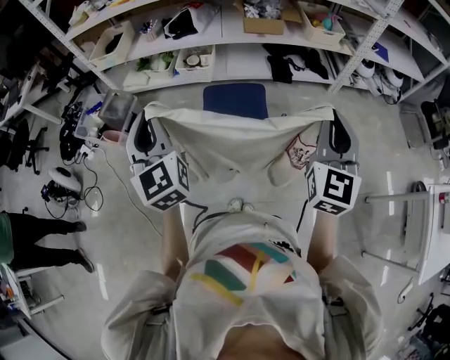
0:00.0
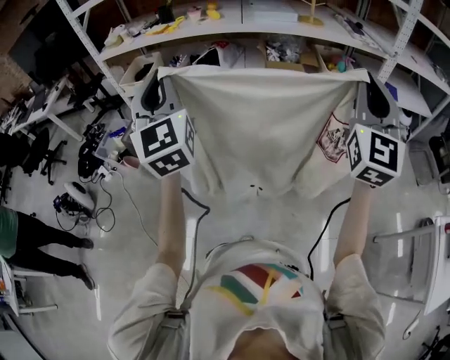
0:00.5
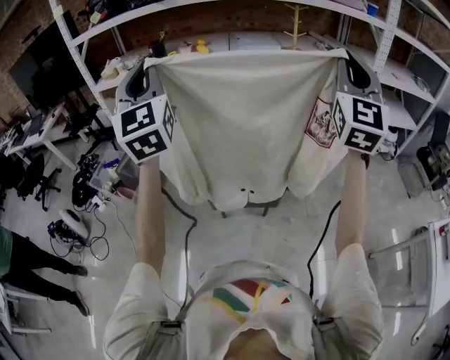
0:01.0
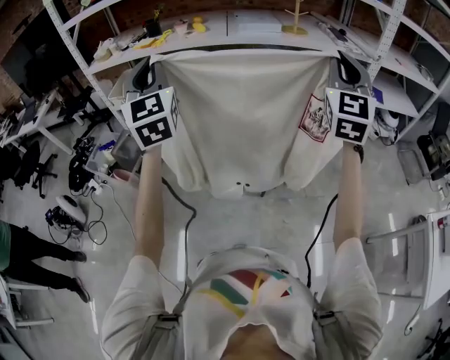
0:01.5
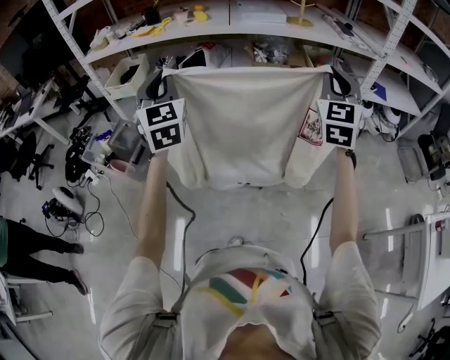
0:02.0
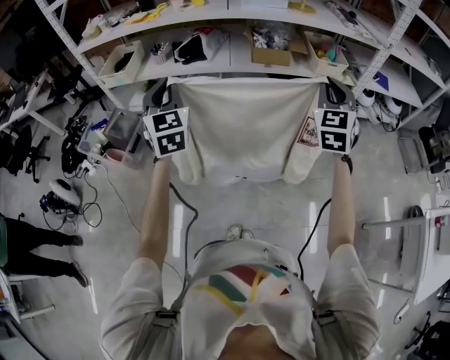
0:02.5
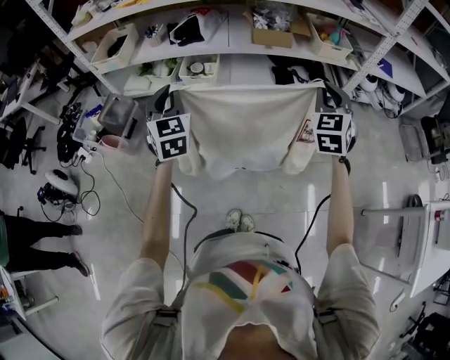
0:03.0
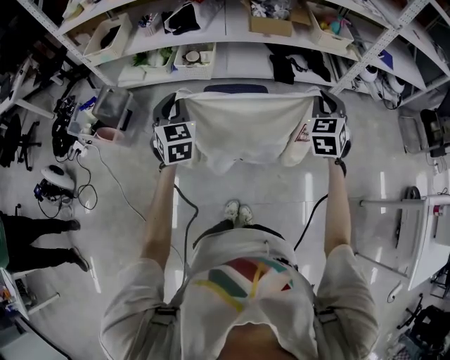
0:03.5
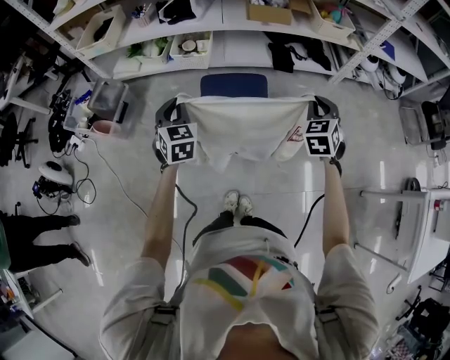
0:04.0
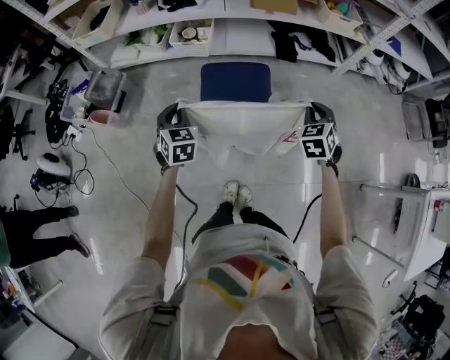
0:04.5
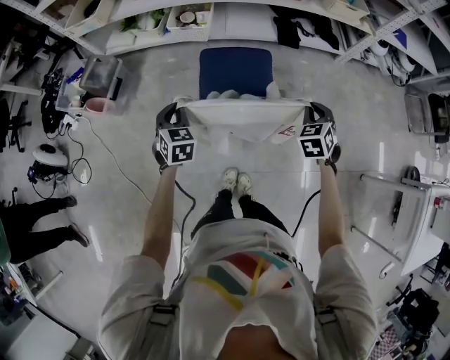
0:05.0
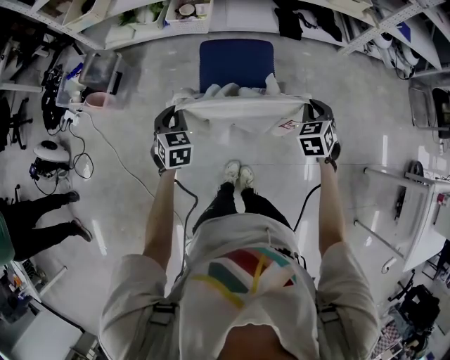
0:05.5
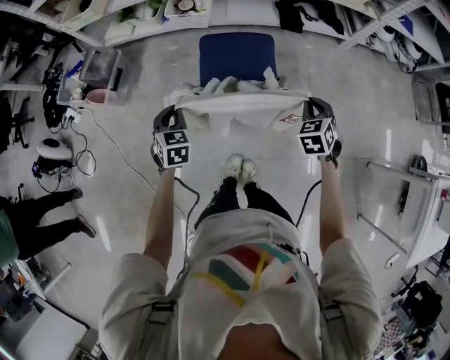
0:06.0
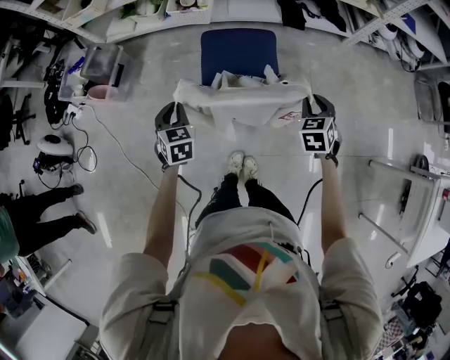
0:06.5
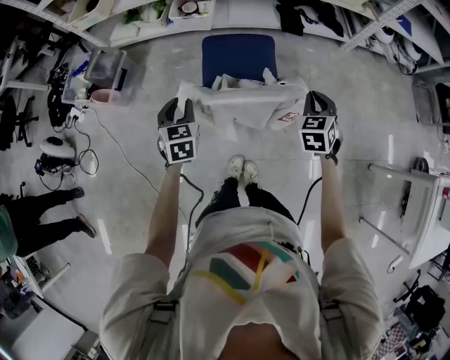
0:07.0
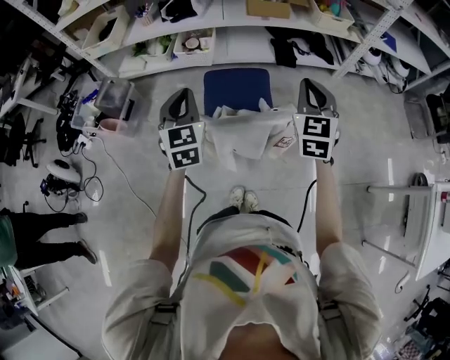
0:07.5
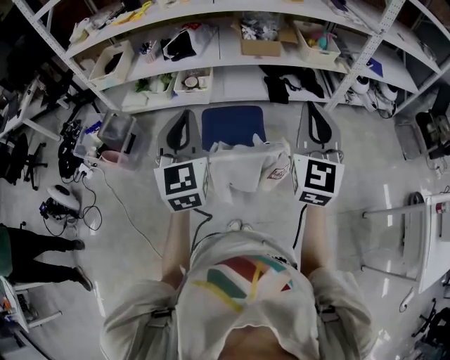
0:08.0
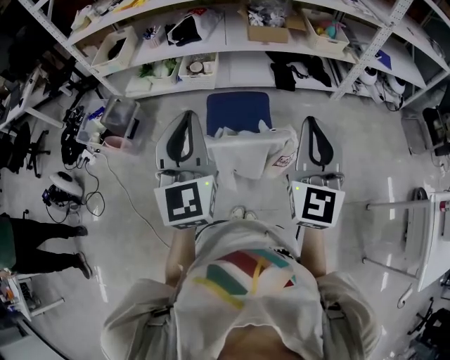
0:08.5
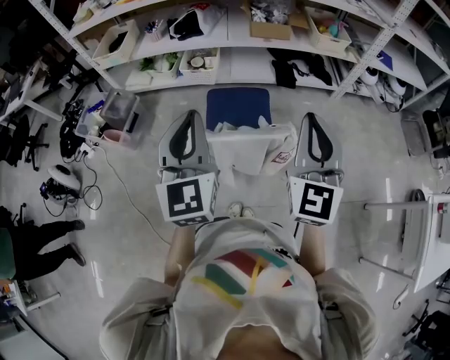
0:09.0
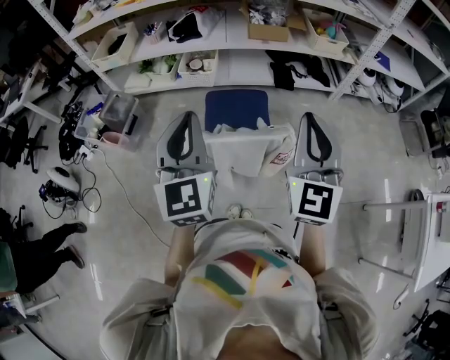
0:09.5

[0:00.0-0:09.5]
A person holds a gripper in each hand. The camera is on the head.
0:00.0 to 0:02.0: The grippers both shift forward and upward by roughly 20 cm.
0:02.0 to 0:04.0: The grippers both shift downward by about 30 cm. The right gripper tips its fingers downward by about 40 degrees. The left gripper swivels roughly 30 degrees.
0:04.0 to 0:05.5: The left gripper moves downward and backward, some 15 cm. Meanwhile the right gripper goes approximately 10 cm downward.
0:05.5 to 0:07.5: Both grippers travel together upward, about 20 cm. The left gripper turns by approximately 30 degrees, and opens and closes again; the right gripper tips its fingers upward by approximately 30 degrees.
0:07.5 to 0:09.5: The right gripper heads backward and upward, covering some 15 cm. Meanwhile the left gripper shifts approximately 20 cm upward and backward.

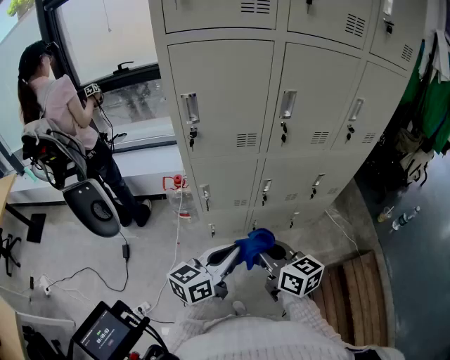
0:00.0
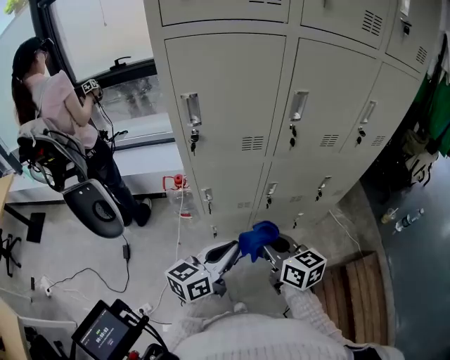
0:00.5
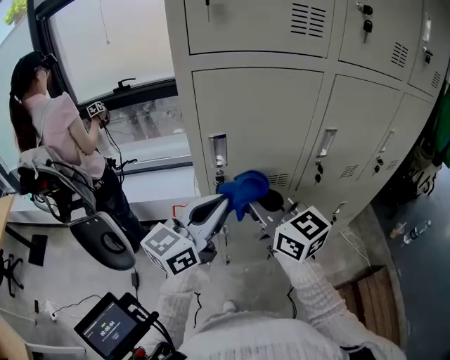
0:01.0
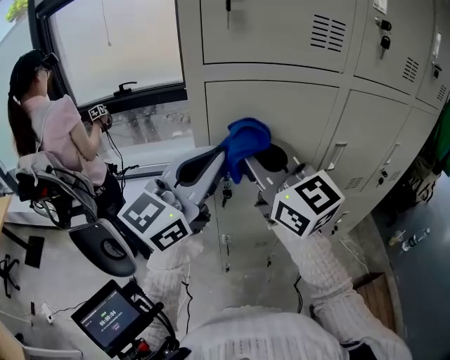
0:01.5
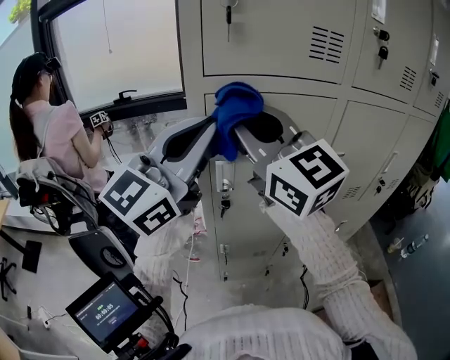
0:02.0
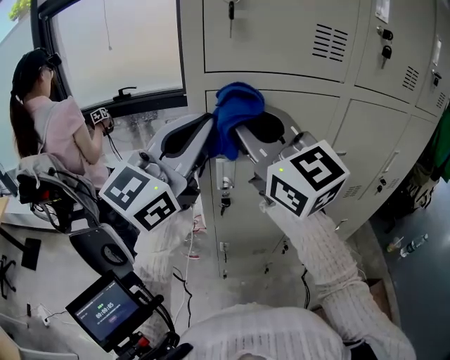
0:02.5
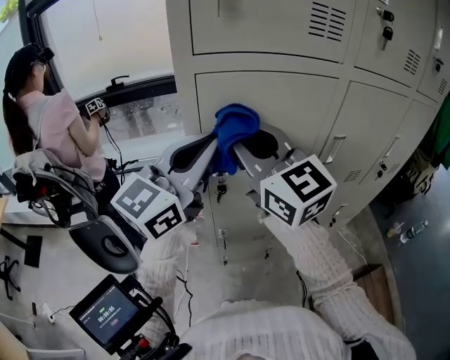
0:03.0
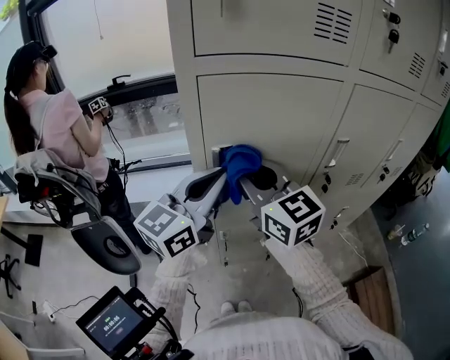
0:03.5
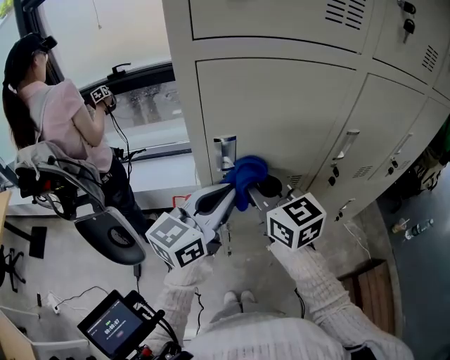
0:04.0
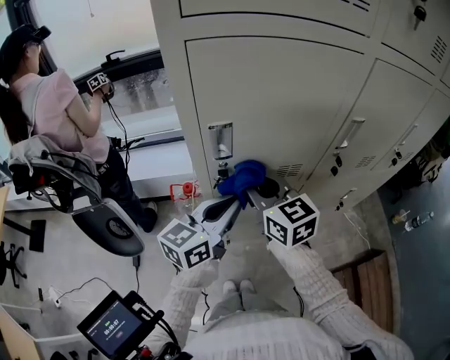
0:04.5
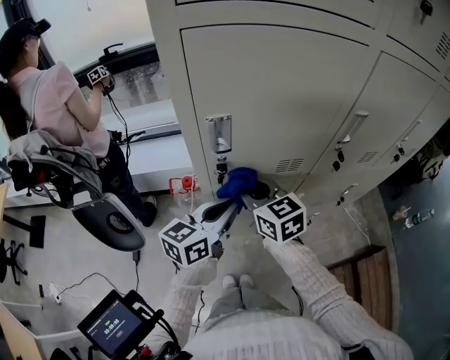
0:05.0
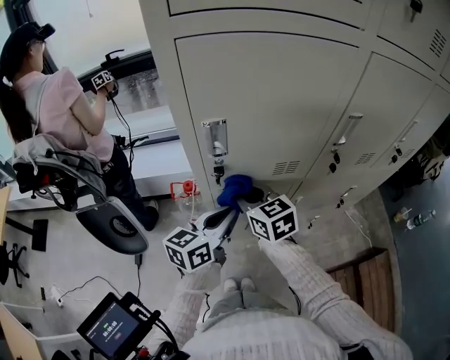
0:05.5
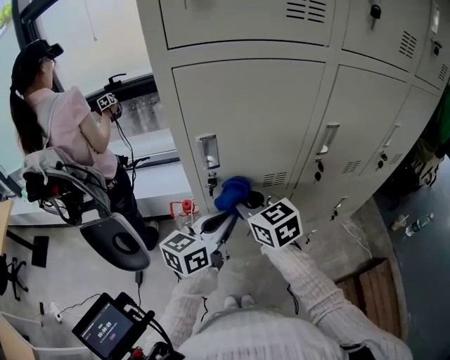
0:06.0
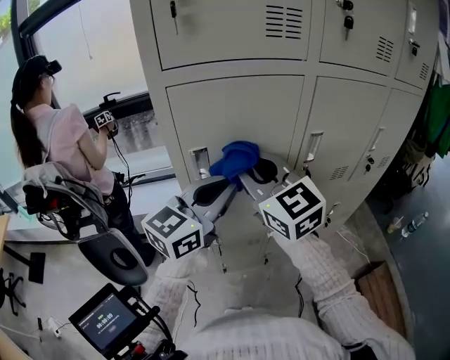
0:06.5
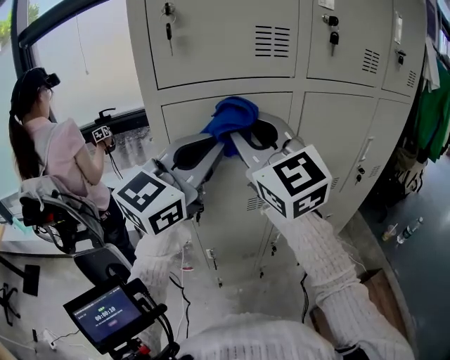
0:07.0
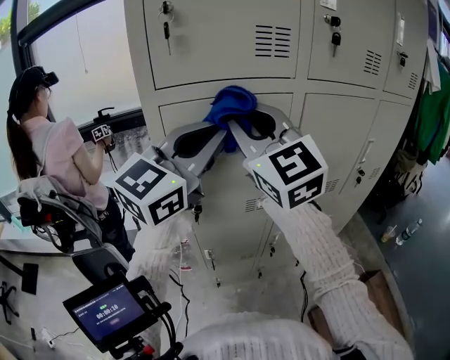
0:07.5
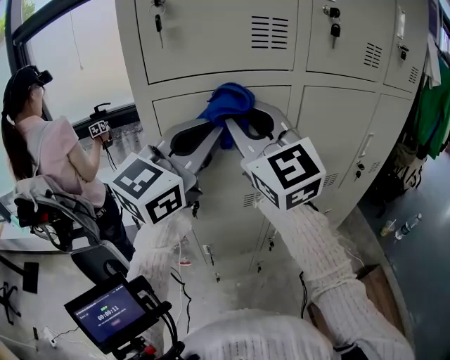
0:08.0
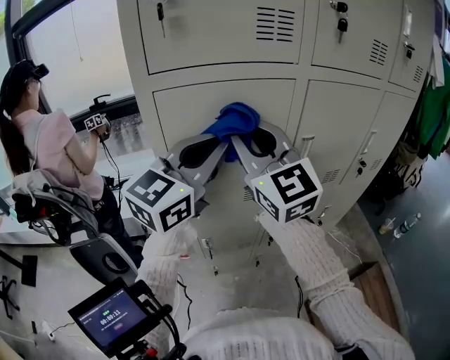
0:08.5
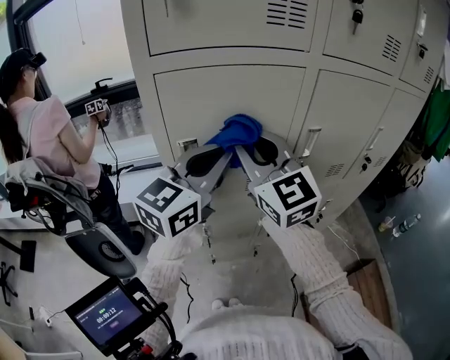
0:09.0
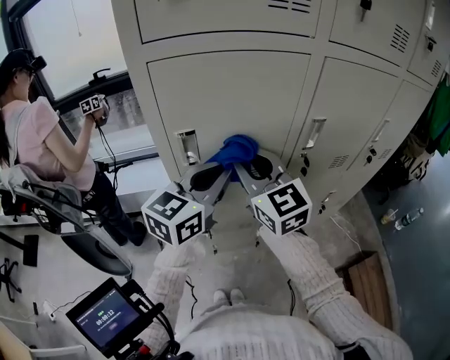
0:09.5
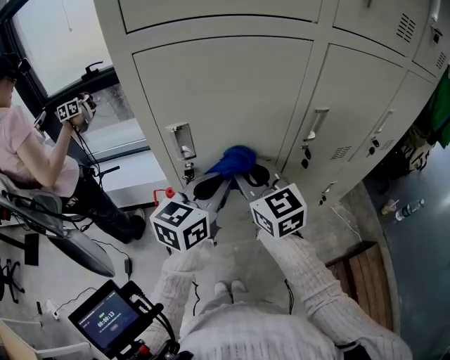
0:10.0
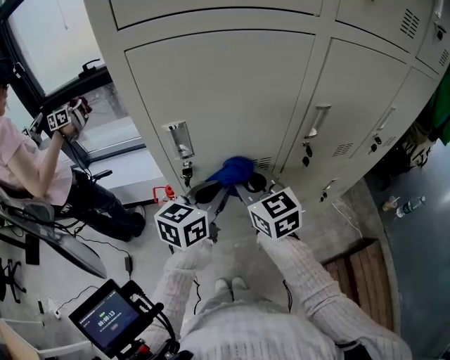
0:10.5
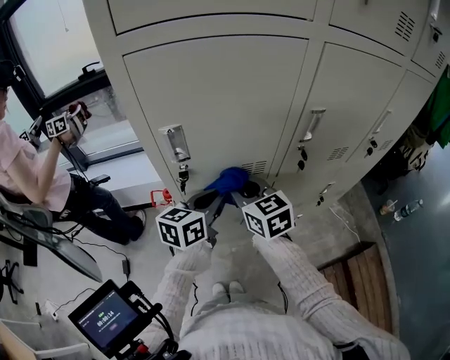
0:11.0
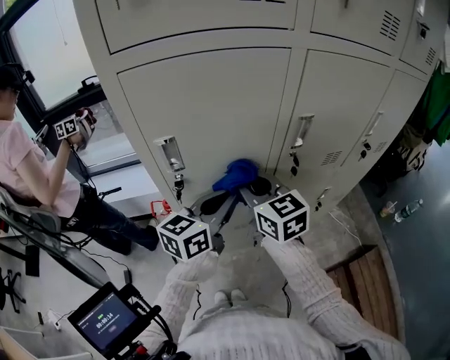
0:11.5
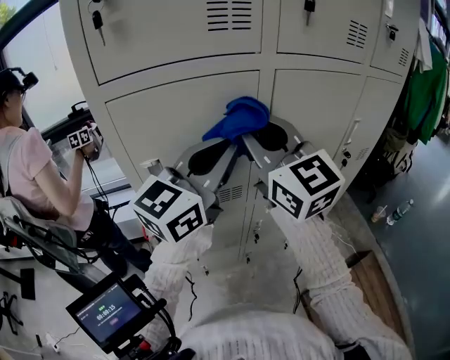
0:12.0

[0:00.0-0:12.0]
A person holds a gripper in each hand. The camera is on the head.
0:00.0 to 0:02.0: The left gripper goes some 50 cm upward and forward, and rolls clockwise, seen from behind, by about 40 degrees. The right gripper goes some 50 cm upward, forward and to the left, and rotates about 50 degrees.
0:02.0 to 0:04.0: Both grippers move downward, approximately 20 cm. The left gripper rotates approximately 30 degrees; the right gripper rotates some 30 degrees.
0:04.0 to 0:06.0: Both grippers travel together downward, roughly 10 cm.
0:06.0 to 0:08.0: The two grippers go roughly 30 cm upward. The left gripper swivels about 40 degrees; the right gripper points its fingers roughly 30 degrees further upward.
0:08.0 to 0:10.0: The grippers both shift downward by some 25 cm. The right gripper swivels approximately 30 degrees. The left gripper turns by about 30 degrees.
0:10.0 to 0:12.0: The two grippers go some 20 cm upward and to the right. The left gripper changes its angle by about 30 degrees. Meanwhile the right gripper rotates roughly 20 degrees.

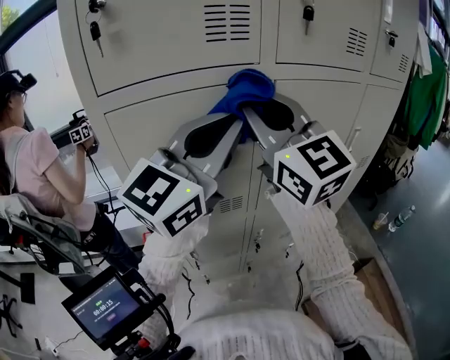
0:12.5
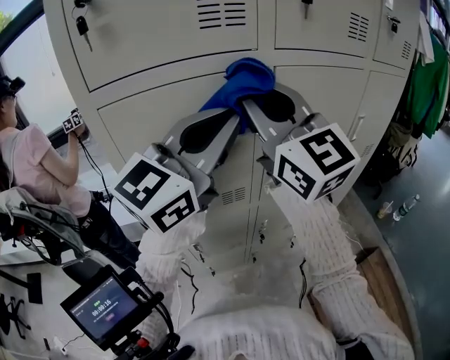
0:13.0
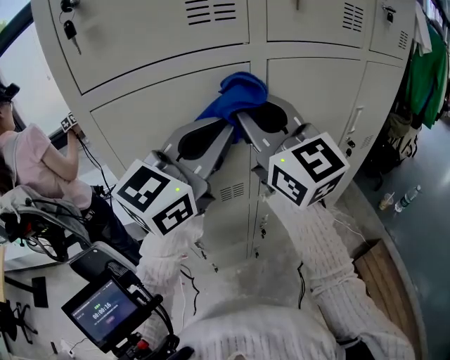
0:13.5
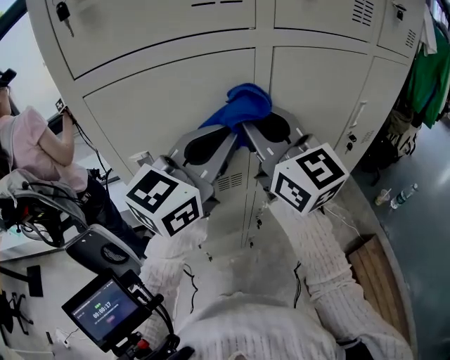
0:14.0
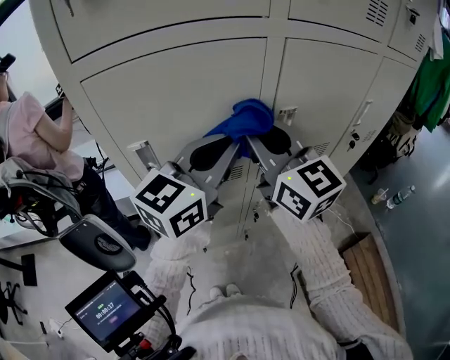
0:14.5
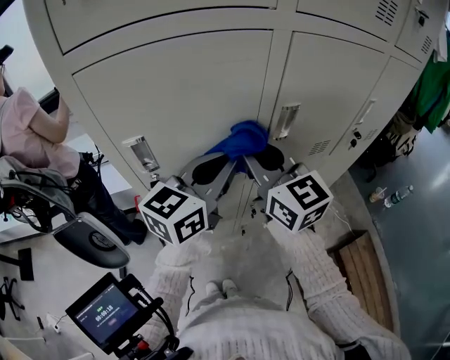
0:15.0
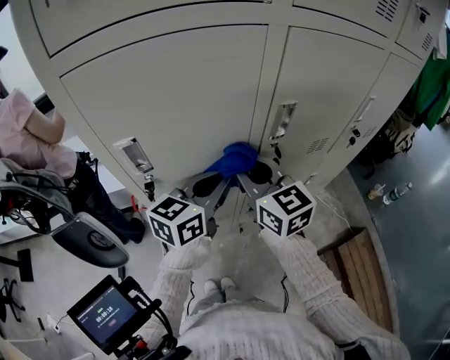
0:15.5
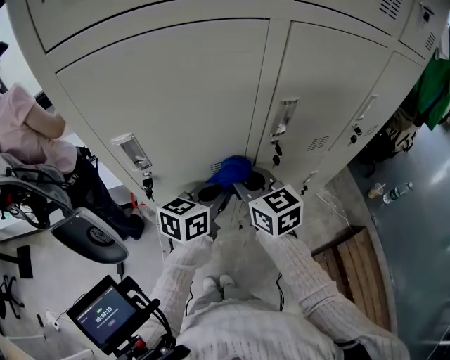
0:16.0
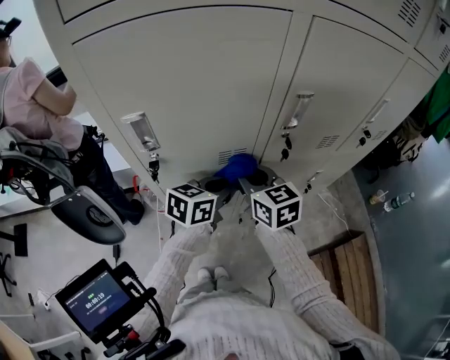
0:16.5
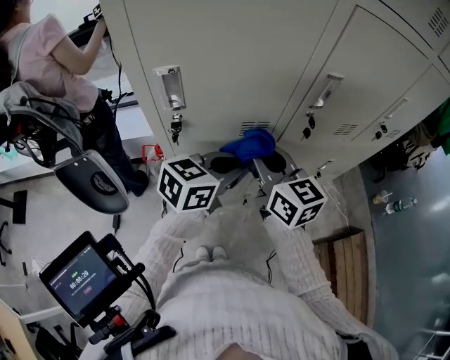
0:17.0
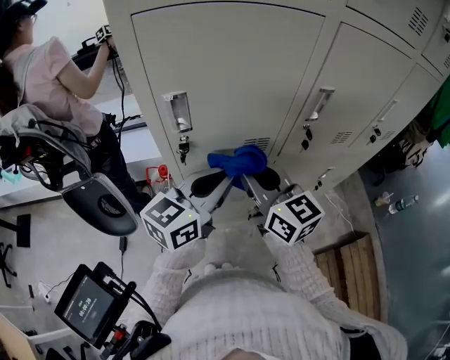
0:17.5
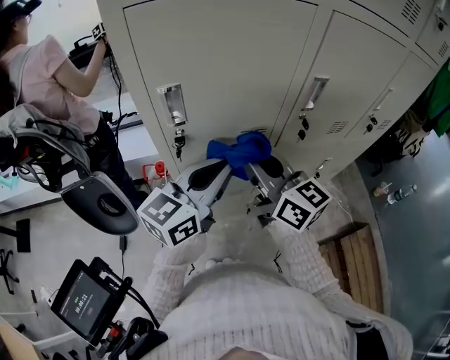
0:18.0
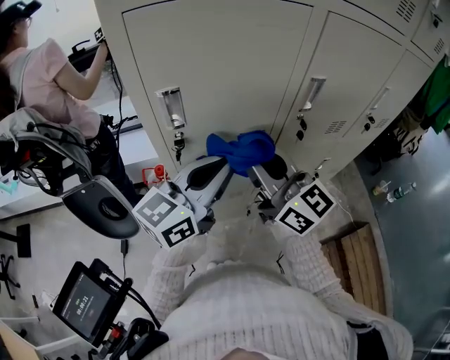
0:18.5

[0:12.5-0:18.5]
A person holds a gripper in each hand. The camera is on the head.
0:12.5 to 0:14.5: The grippers both shift downward by about 15 cm.
0:14.5 to 0:16.5: The two grippers go some 25 cm downward. The left gripper rotates roughly 40 degrees. The right gripper changes its angle by about 30 degrees.
0:16.5 to 0:18.5: The left gripper heads upward, backward and to the left, covering about 20 cm, and rotates some 30 degrees. Meanwhile the right gripper travels upward and backward by some 15 cm, and angles its fingers upward, by approximately 30 degrees.
